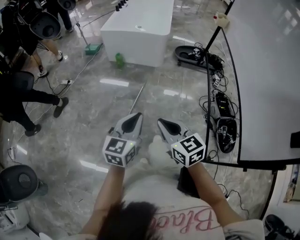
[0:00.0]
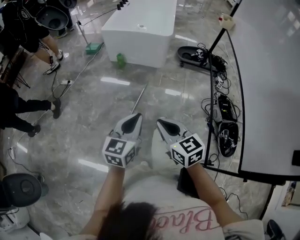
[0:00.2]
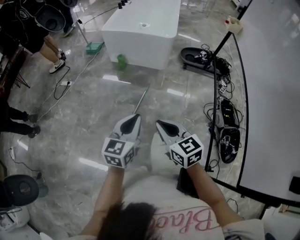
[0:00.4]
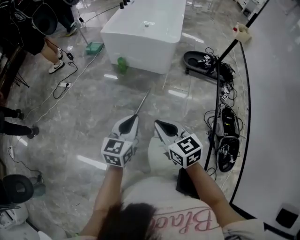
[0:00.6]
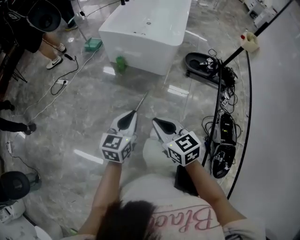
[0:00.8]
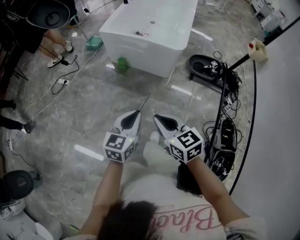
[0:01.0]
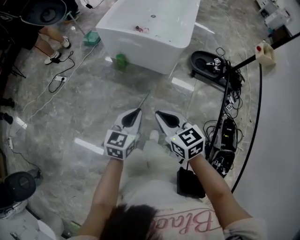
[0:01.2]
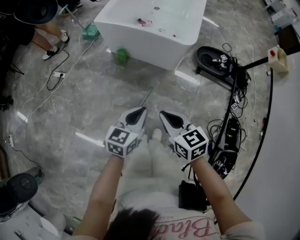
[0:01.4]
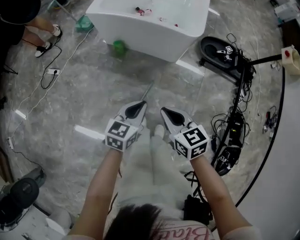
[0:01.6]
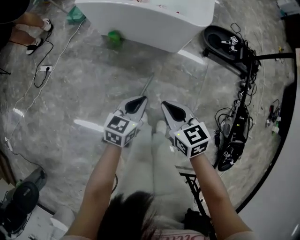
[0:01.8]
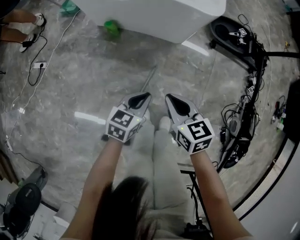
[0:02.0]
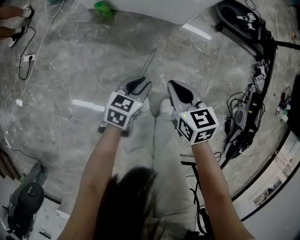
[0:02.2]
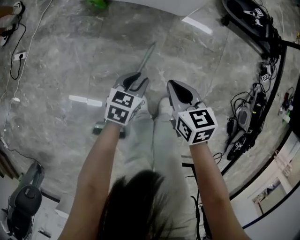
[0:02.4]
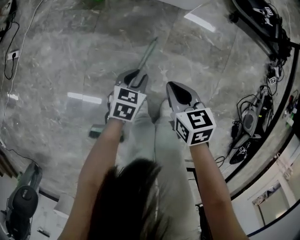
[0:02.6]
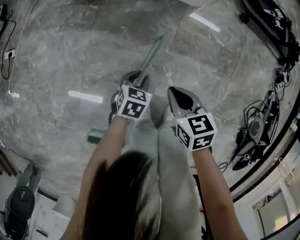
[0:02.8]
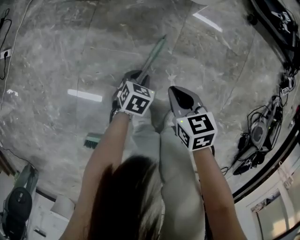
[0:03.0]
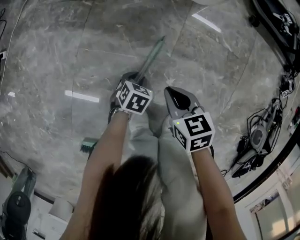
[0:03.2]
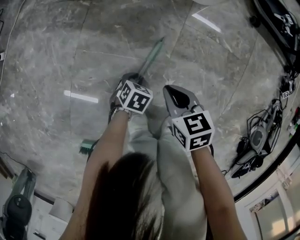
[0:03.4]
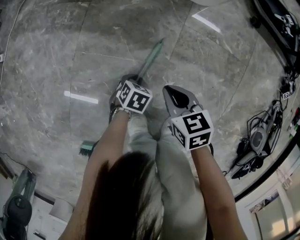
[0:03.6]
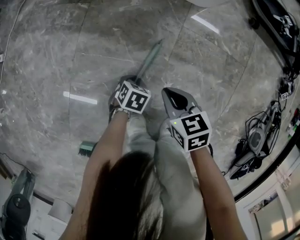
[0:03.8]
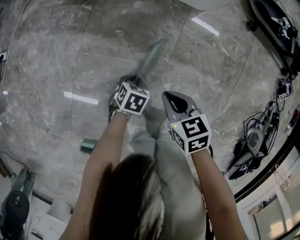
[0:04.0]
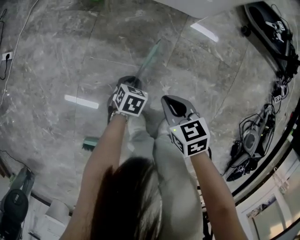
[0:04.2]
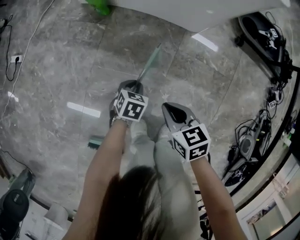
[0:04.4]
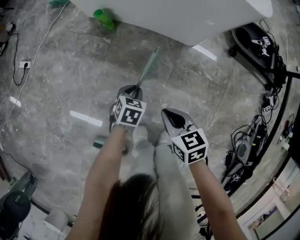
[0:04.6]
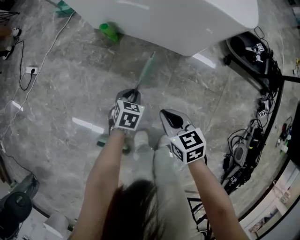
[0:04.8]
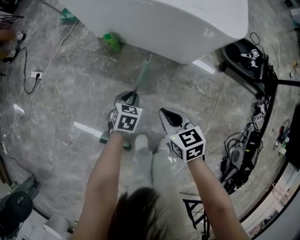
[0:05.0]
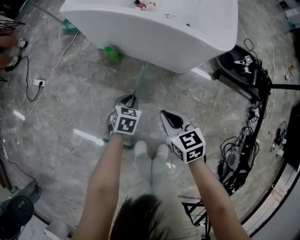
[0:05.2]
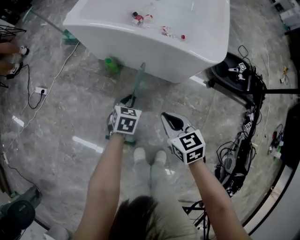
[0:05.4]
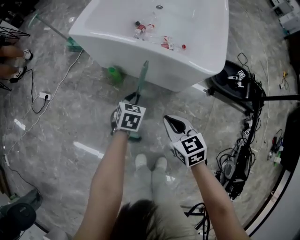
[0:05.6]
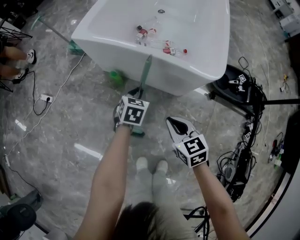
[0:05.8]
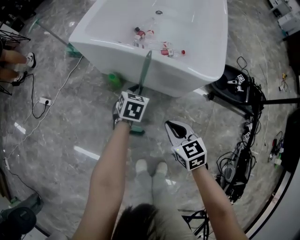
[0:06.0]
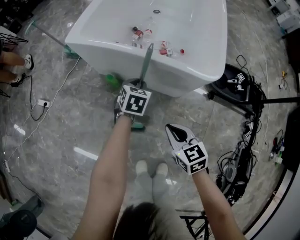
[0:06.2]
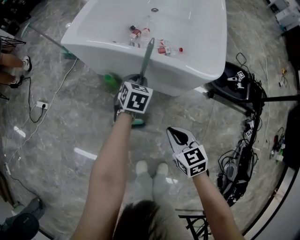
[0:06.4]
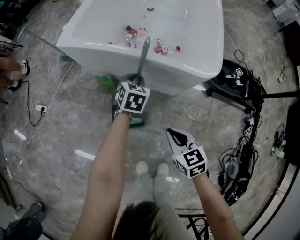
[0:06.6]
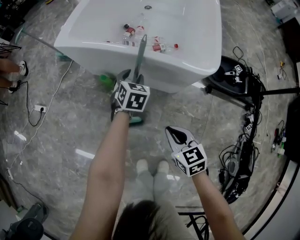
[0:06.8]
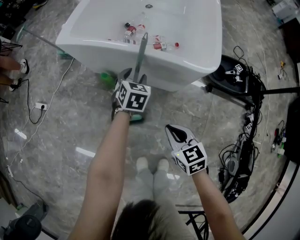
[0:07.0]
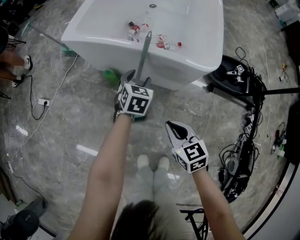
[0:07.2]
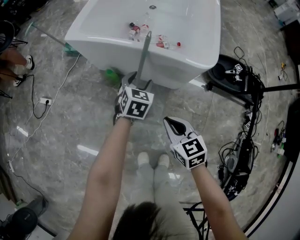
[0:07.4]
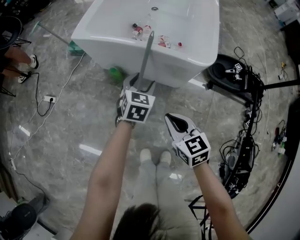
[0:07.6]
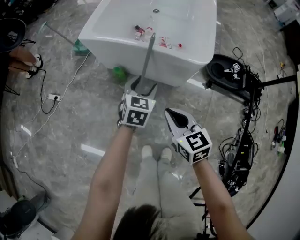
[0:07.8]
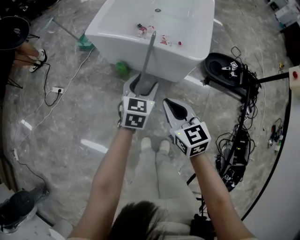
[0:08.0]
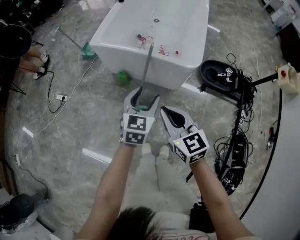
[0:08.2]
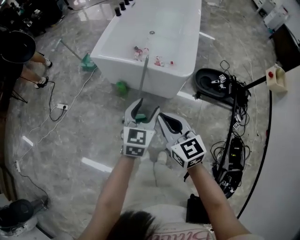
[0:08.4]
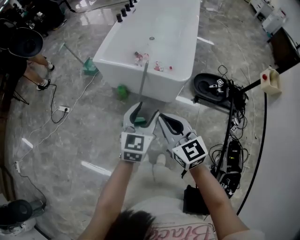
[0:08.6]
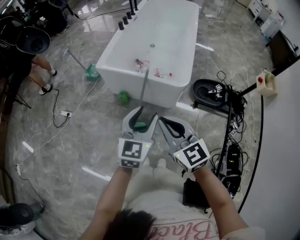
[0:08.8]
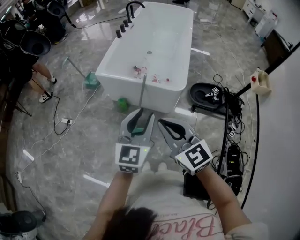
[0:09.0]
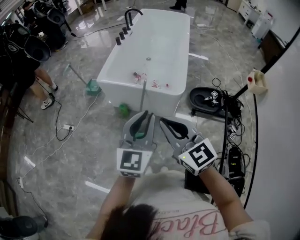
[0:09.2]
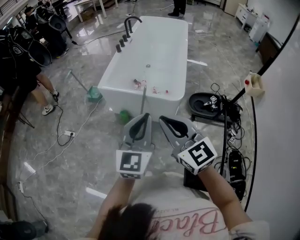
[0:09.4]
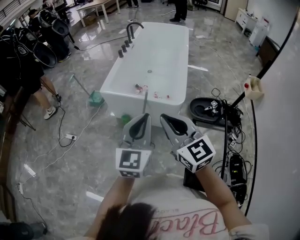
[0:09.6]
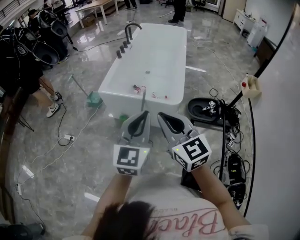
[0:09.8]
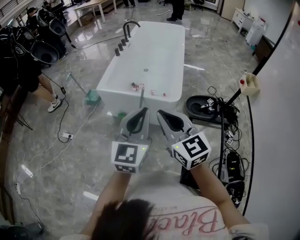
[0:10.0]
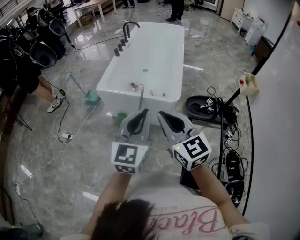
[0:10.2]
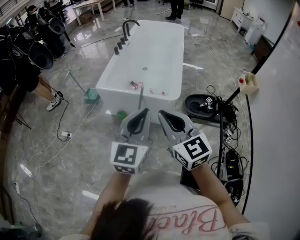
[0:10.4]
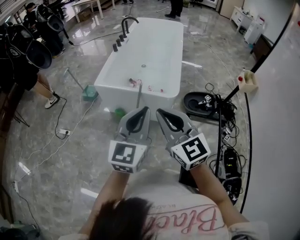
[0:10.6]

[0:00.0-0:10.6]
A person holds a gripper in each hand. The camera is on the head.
0:00.0 to 0:01.6: The two grippers travel together, forward, about 40 cm. The left gripper moves downward, roughly 20 cm.
0:01.6 to 0:03.0: Both grippers travel together downward, roughly 50 cm. The left gripper angles its fingers downward, by roughly 40 degrees.
0:03.0 to 0:04.6: The right gripper heads upward, covering about 10 cm. Meanwhile the left gripper shifts roughly 15 cm upward and forward.
0:04.6 to 0:06.0: The grippers both shift upward and forward by roughly 25 cm.
0:06.0 to 0:07.6: The two grippers go some 5 cm upward. The left gripper opens up.
0:07.6 to 0:09.0: The left gripper heads upward and backward, covering roughly 40 cm, changes its angle by about 30 degrees, and closes up. Meanwhile the right gripper travels upward by roughly 30 cm, and changes its angle by some 30 degrees.
0:09.0 to 0:10.6: Both grippers travel together upward, about 5 cm. The left gripper closes.

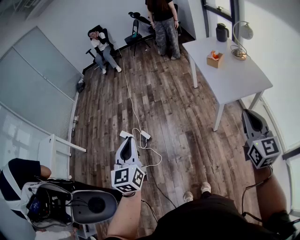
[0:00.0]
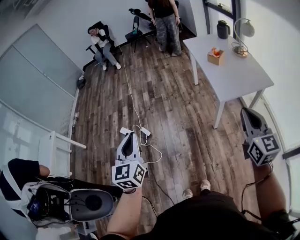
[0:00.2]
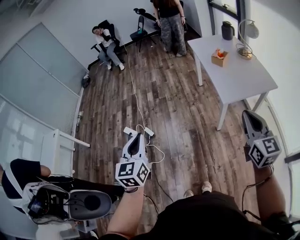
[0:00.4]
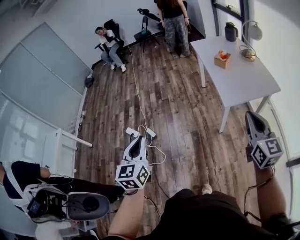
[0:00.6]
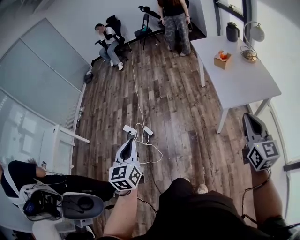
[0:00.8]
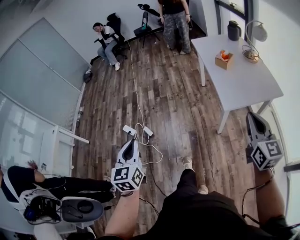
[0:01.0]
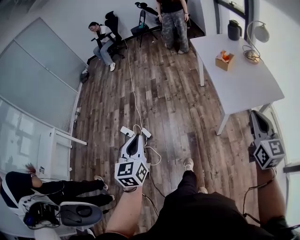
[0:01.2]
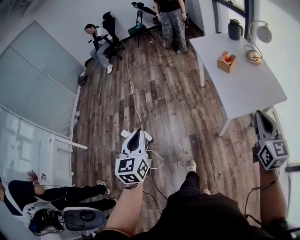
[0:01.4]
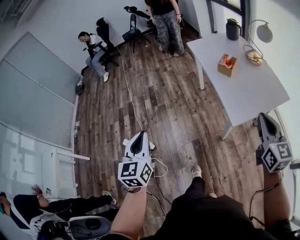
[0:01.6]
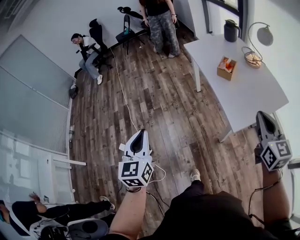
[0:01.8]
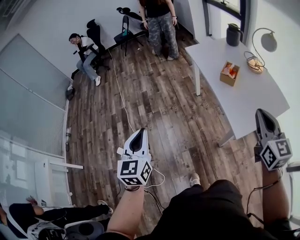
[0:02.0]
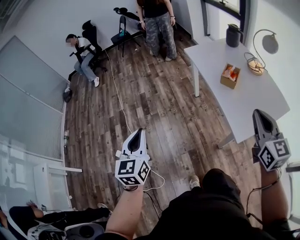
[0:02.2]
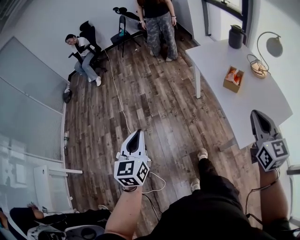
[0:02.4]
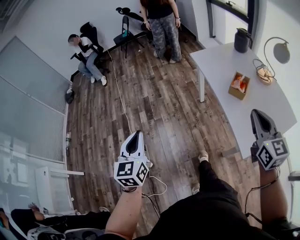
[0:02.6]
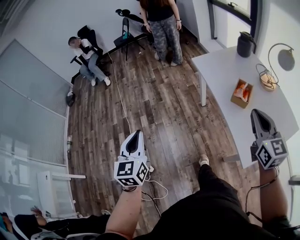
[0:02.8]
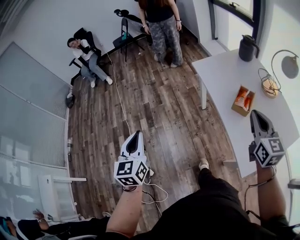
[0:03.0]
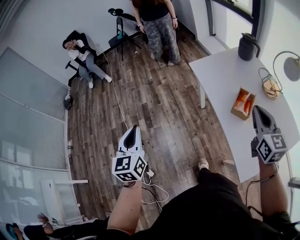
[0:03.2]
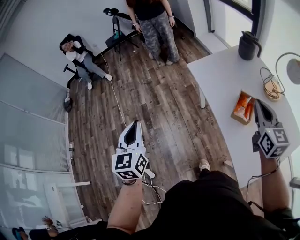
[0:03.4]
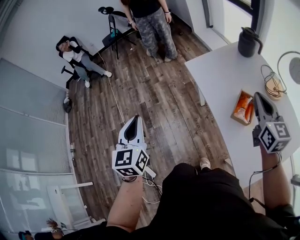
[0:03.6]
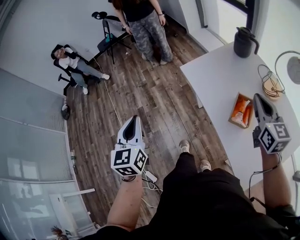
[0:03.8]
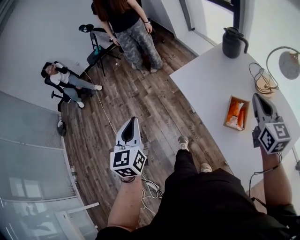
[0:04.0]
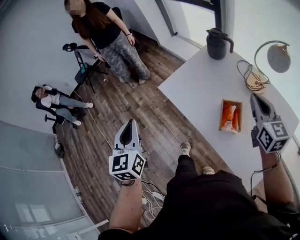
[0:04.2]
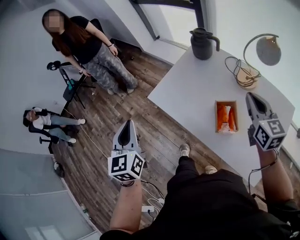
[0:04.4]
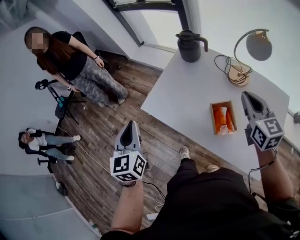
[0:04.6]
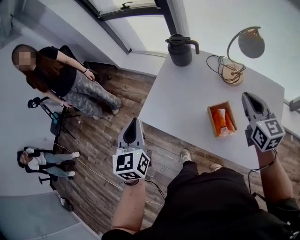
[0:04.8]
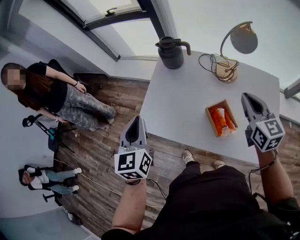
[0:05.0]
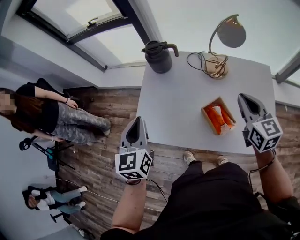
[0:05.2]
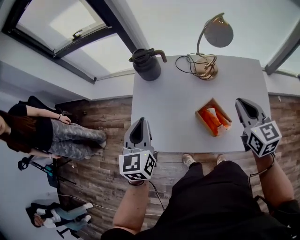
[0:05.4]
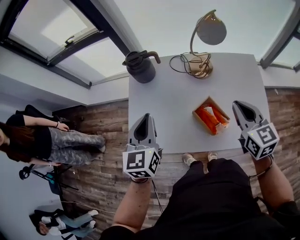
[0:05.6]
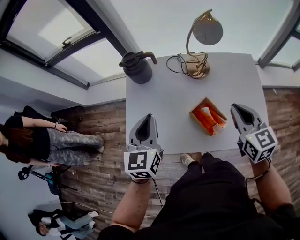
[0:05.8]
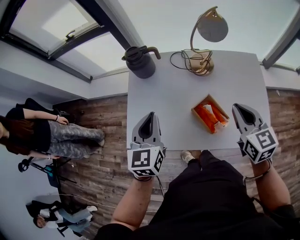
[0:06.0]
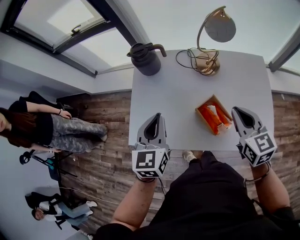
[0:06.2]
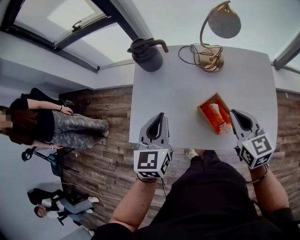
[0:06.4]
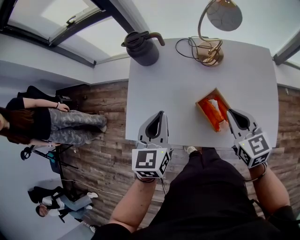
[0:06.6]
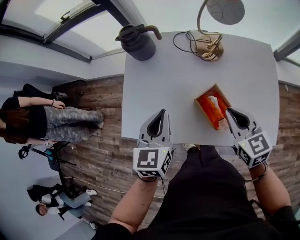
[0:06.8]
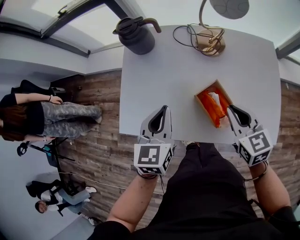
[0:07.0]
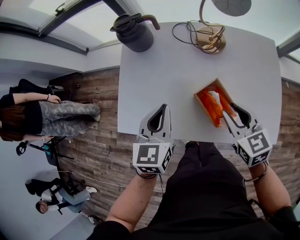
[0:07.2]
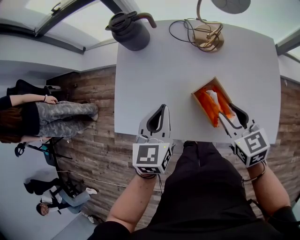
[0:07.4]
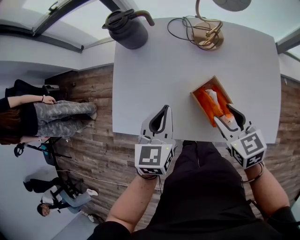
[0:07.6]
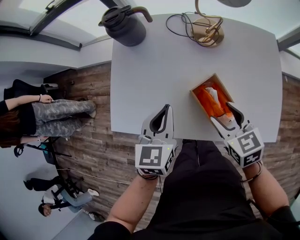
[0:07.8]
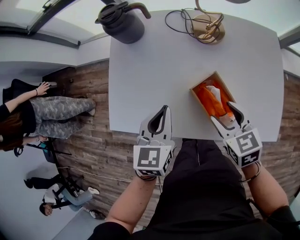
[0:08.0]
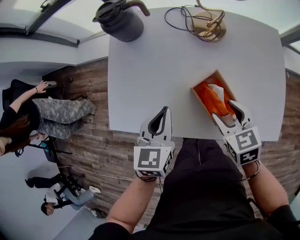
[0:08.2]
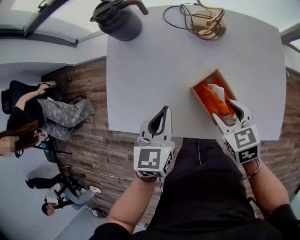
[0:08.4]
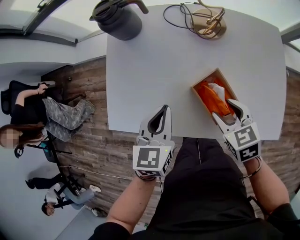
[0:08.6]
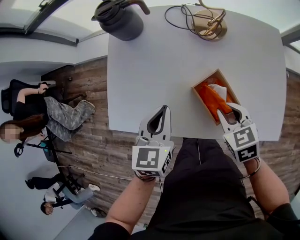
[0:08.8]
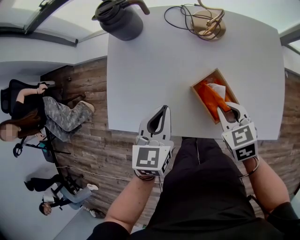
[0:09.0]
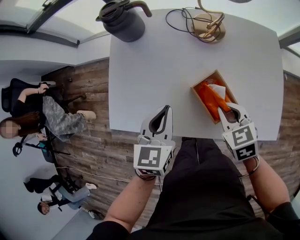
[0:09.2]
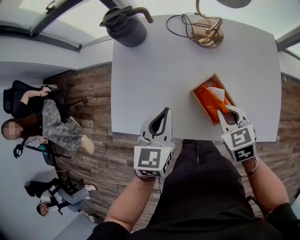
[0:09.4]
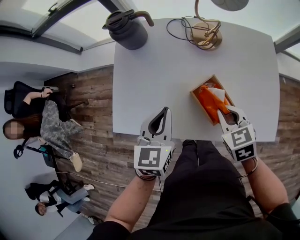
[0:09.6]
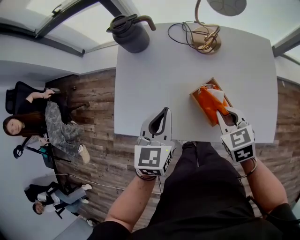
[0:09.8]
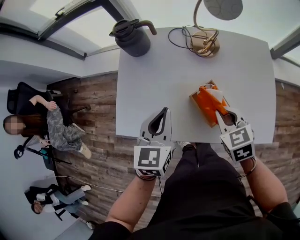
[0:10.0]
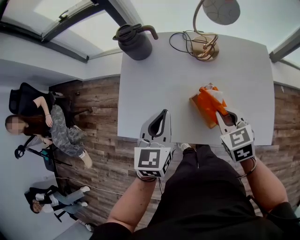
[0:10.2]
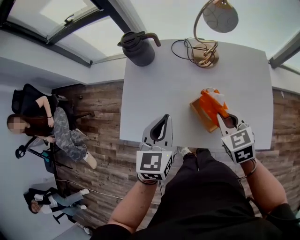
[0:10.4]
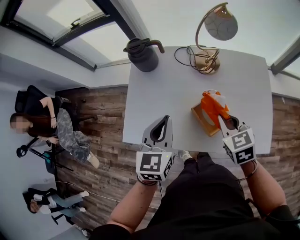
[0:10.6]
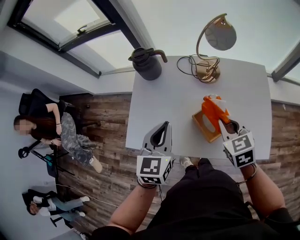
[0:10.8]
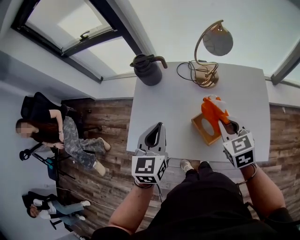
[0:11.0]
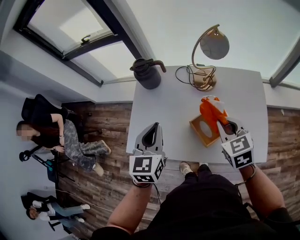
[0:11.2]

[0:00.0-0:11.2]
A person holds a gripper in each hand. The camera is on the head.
0:00.0 to 0:01.6: Both grippers travel together forward, approximately 25 cm.
0:01.6 to 0:03.2: Both grippers are carried forward, approximately 40 cm.
0:03.2 to 0:04.8: The right gripper shifts by about 20 cm, and rotates approximately 40 degrees. Meanwhile the left gripper moves approximately 50 cm, and turns by approximately 50 degrees.
0:04.8 to 0:06.4: The right gripper heads downward, covering some 10 cm. The left gripper moves some 20 cm, and turns by some 30 degrees.
0:06.4 to 0:08.0: Both grippers travel together downward, approximately 10 cm. The right gripper changes its angle by about 20 degrees, and opens up.
0:08.0 to 0:09.6: The right gripper closes.
0:09.6 to 0:11.2: Both grippers travel together upward, roughly 15 cm.

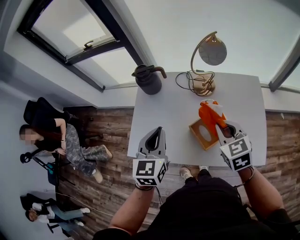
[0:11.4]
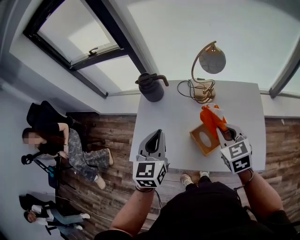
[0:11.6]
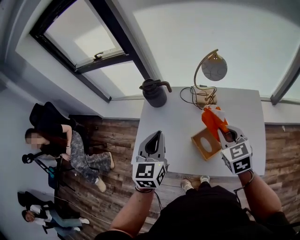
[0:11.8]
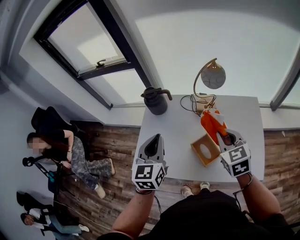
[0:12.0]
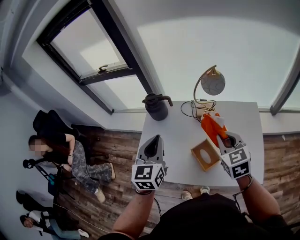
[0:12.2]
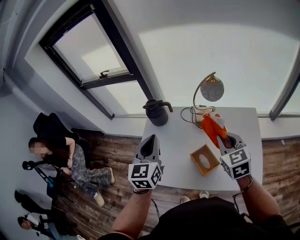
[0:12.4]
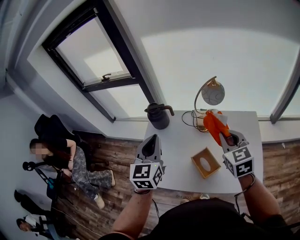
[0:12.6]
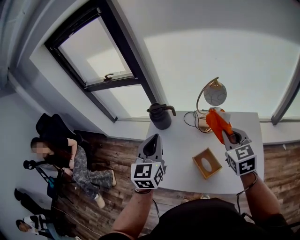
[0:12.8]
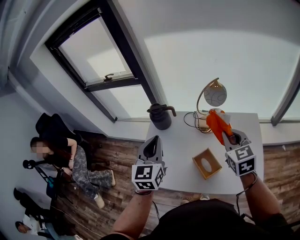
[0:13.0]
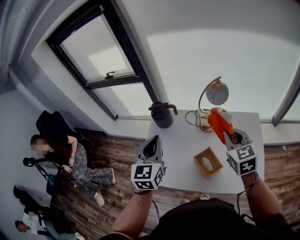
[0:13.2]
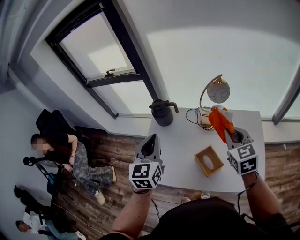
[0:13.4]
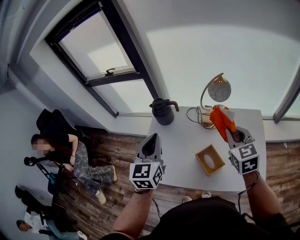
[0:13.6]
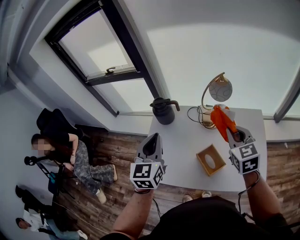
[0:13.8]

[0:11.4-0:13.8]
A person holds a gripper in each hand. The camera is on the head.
0:11.4 to 0:12.6: Both grippers move upward, some 10 cm.
0:12.6 to 0:13.8: There are only small adjustments of the grippers.
